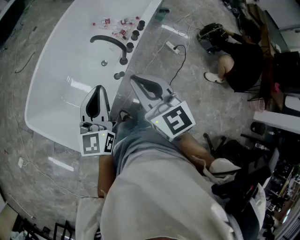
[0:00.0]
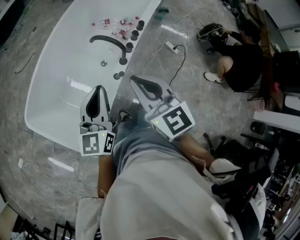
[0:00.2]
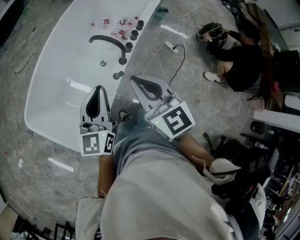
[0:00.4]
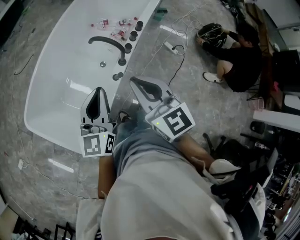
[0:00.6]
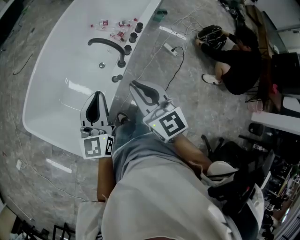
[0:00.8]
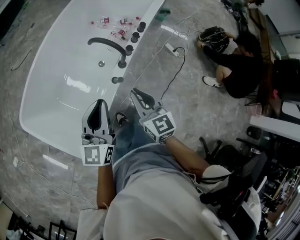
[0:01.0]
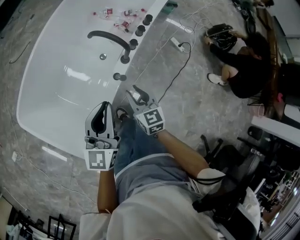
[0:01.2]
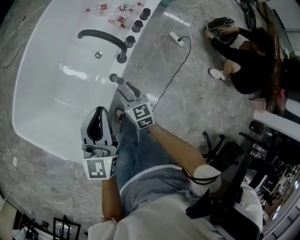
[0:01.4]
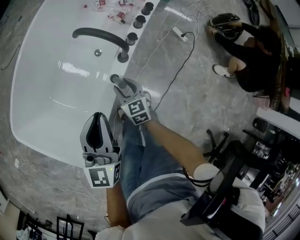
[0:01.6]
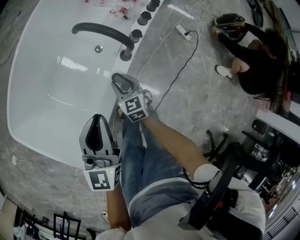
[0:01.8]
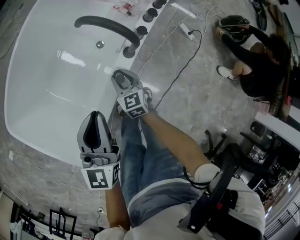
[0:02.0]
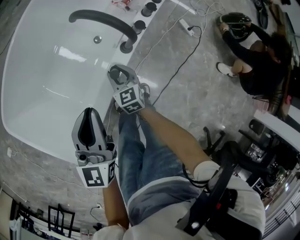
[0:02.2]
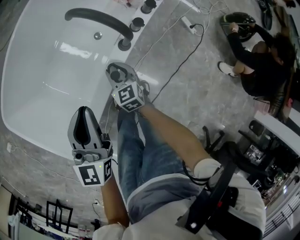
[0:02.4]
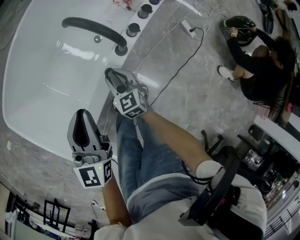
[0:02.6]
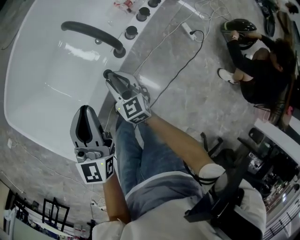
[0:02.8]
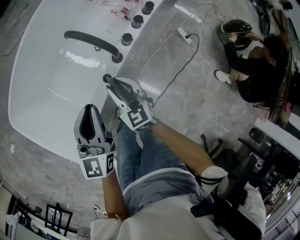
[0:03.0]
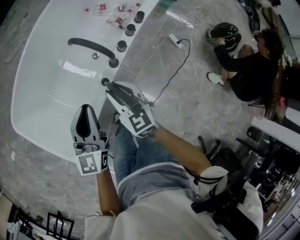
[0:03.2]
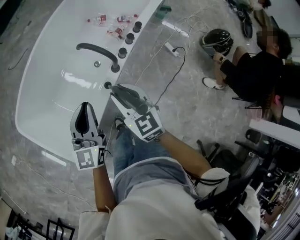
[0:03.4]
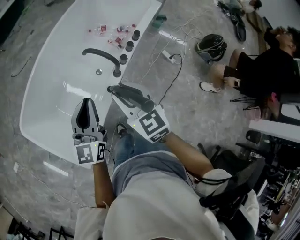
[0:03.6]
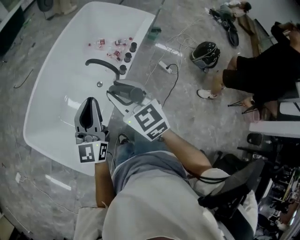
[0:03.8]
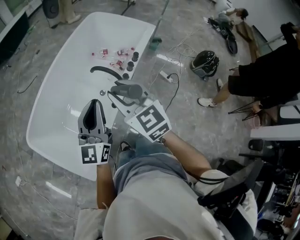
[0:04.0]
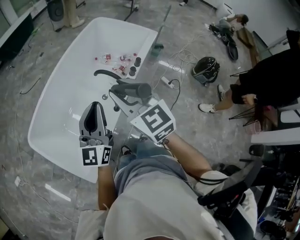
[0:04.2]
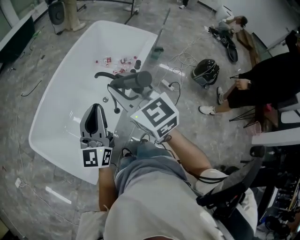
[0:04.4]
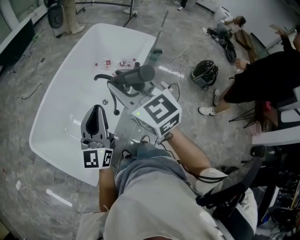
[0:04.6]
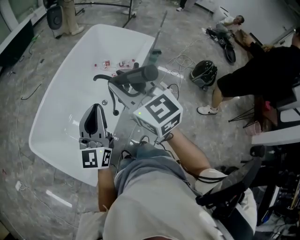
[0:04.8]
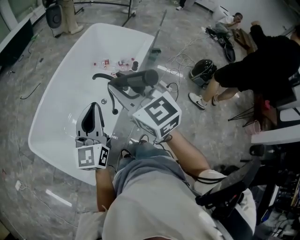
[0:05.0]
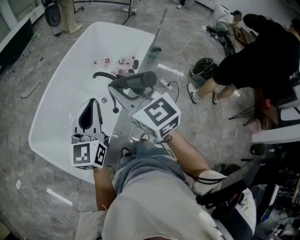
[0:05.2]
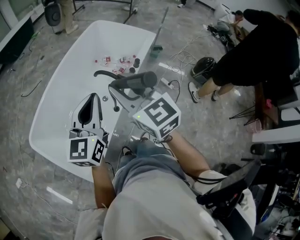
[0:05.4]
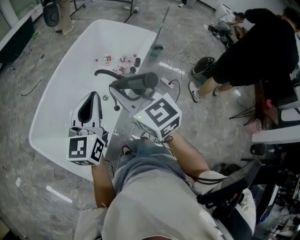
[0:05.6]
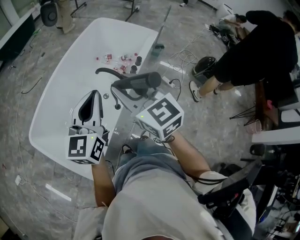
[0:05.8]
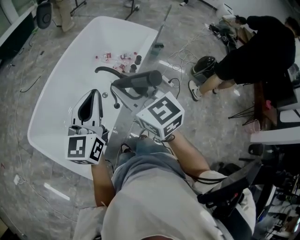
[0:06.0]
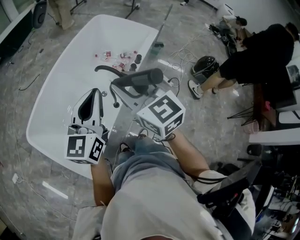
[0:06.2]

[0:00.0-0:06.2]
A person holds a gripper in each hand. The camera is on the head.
0:00.0 to 0:01.6: The right gripper is displaced downward by roughly 60 cm, rotates some 20 degrees, and opens its fingers. The left gripper shifts approximately 40 cm downward and forward.
0:01.6 to 0:03.2: The right gripper travels upward by about 25 cm, and rotates some 20 degrees. Meanwhile the left gripper heads upward and to the right, covering roughly 10 cm.
0:03.2 to 0:04.6: The right gripper shifts some 60 cm upward. The left gripper goes about 50 cm upward and backward, and turns by roughly 20 degrees.
0:04.6 to 0:06.2: The right gripper travels downward by roughly 5 cm.

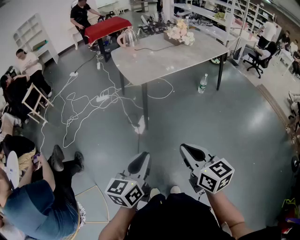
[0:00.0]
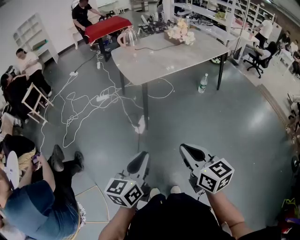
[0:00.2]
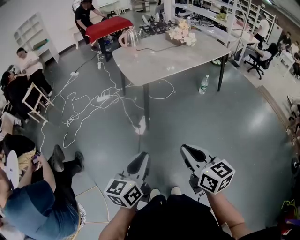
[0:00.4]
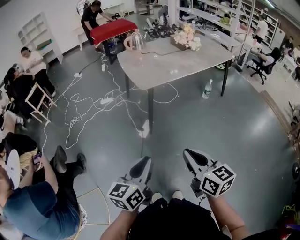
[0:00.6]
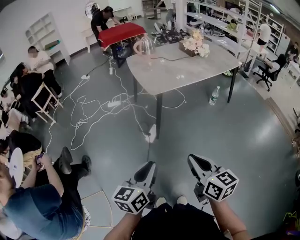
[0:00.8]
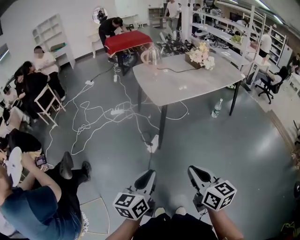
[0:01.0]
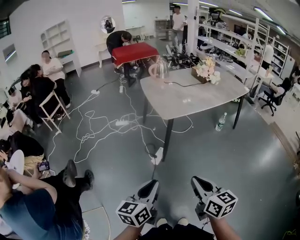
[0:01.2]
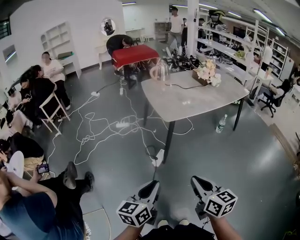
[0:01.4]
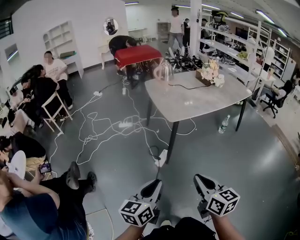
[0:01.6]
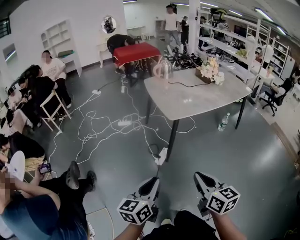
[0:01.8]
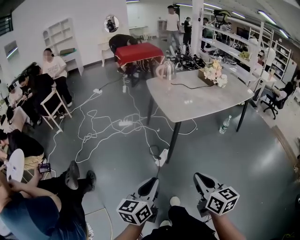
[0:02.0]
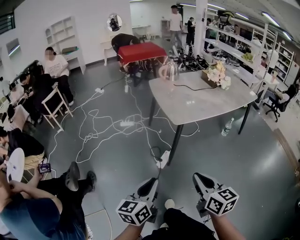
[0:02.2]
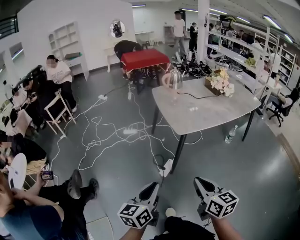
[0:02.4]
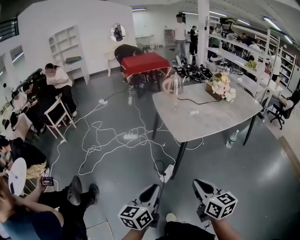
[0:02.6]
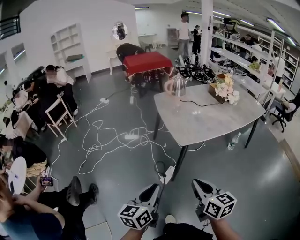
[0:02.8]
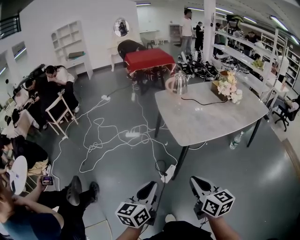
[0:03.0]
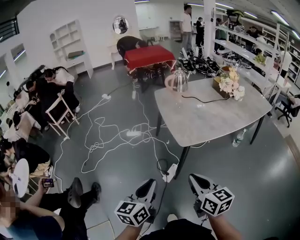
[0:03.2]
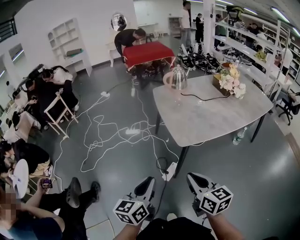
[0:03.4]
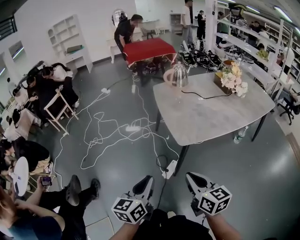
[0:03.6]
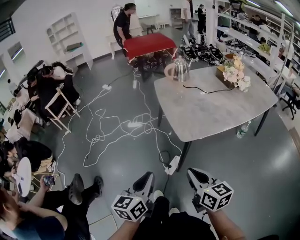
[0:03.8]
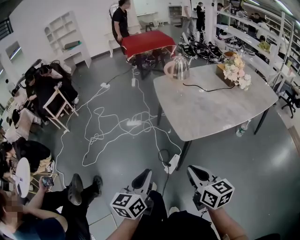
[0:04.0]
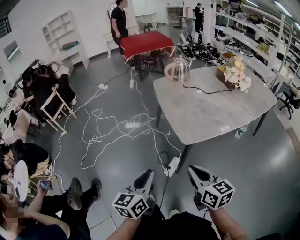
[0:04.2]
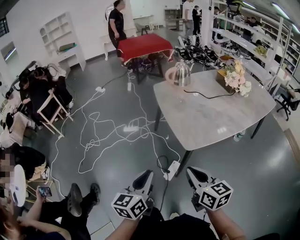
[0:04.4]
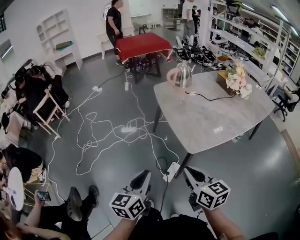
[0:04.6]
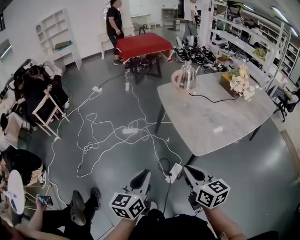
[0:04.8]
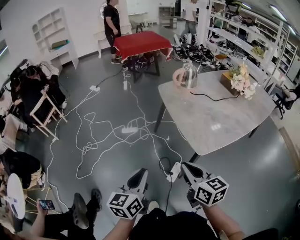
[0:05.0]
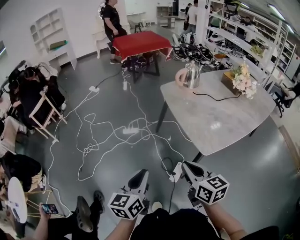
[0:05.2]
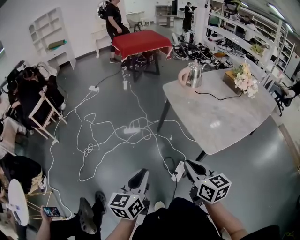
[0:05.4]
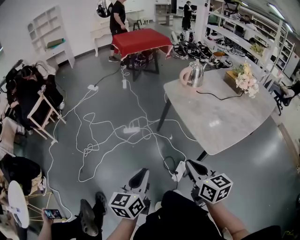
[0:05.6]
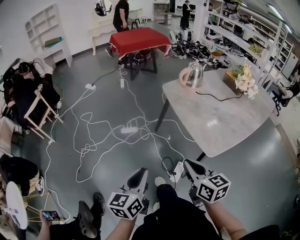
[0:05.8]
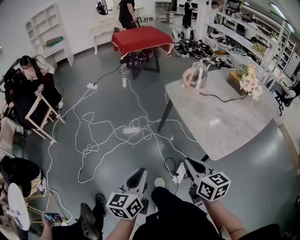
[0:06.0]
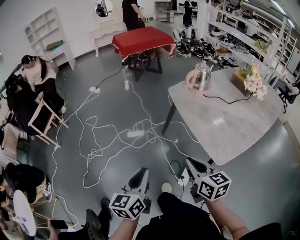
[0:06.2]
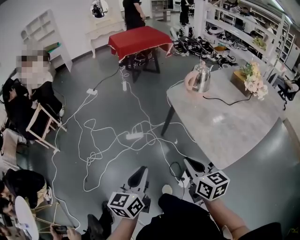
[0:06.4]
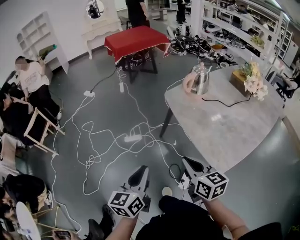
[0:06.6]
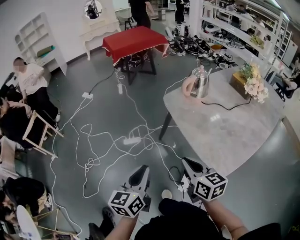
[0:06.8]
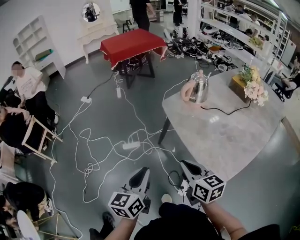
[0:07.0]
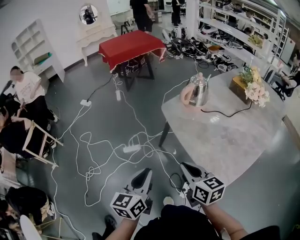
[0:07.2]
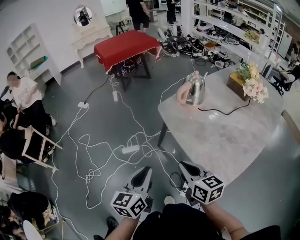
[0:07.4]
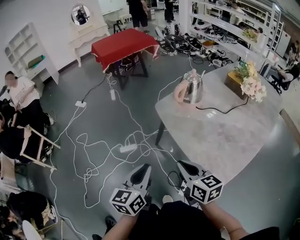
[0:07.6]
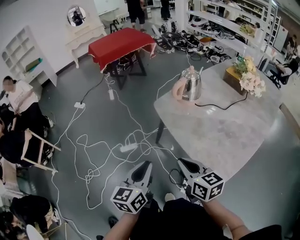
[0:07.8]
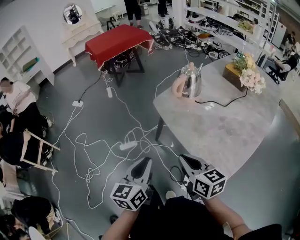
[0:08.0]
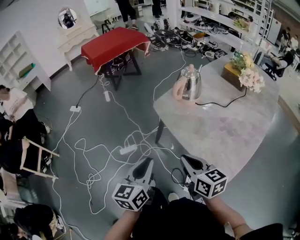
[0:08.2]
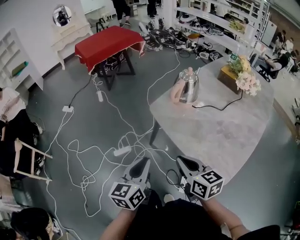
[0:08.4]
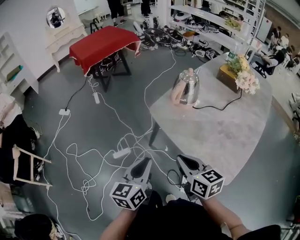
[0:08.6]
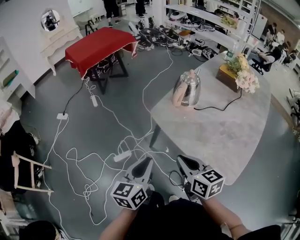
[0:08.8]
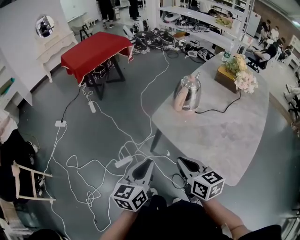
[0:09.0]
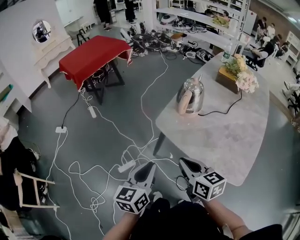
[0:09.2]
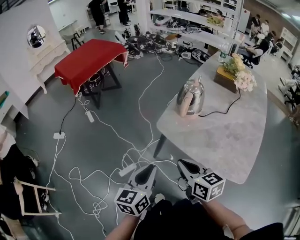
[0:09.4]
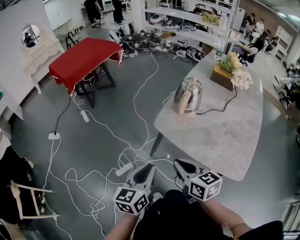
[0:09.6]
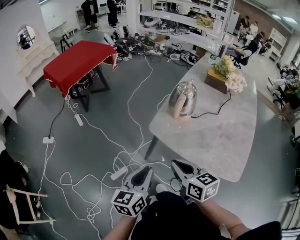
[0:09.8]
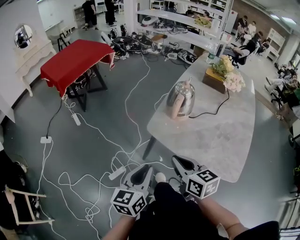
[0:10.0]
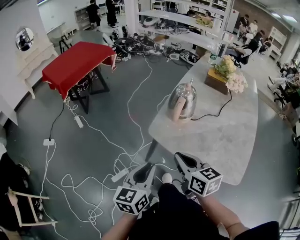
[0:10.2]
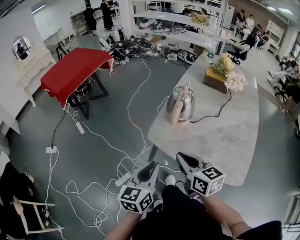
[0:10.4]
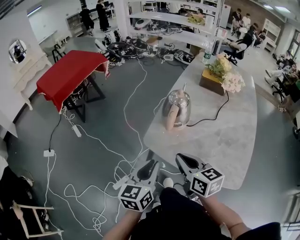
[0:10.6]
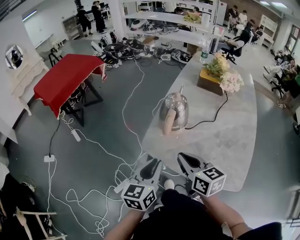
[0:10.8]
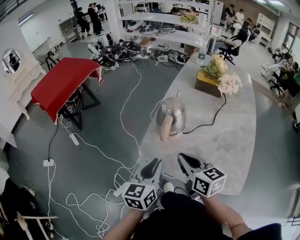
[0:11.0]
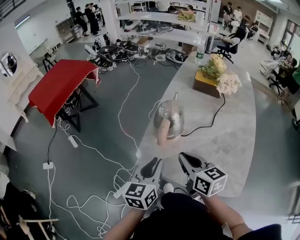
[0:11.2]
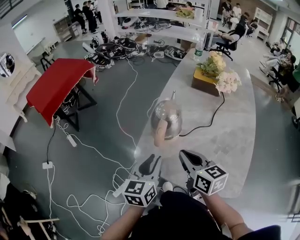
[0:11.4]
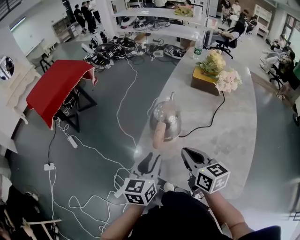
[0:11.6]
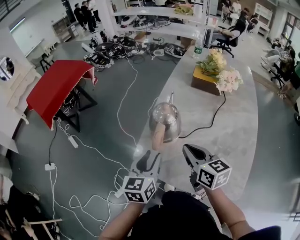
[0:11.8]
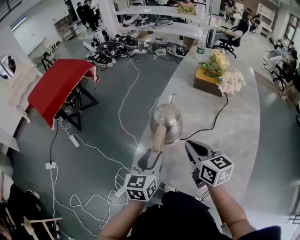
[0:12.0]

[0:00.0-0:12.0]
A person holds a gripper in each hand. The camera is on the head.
0:00.0 to 0:01.6: The left gripper goes about 15 cm to the left, while the right gripper moves to the left and forward, some 10 cm.
0:01.6 to 0:03.0: The grippers both shift forward by roughly 20 cm.
0:03.0 to 0:04.4: The grippers both shift forward by approximately 15 cm.
0:04.4 to 0:06.0: Both grippers move to the left and forward, approximately 25 cm.
0:06.0 to 0:07.6: Both grippers move forward, some 20 cm.
0:07.6 to 0:09.0: The left gripper moves forward, about 15 cm. The right gripper goes roughly 15 cm forward and to the left.
0:09.0 to 0:10.4: The two grippers go some 10 cm forward.
0:10.4 to 0:12.0: Both grippers move forward and to the right, approximately 20 cm. The left gripper opens its fingers.

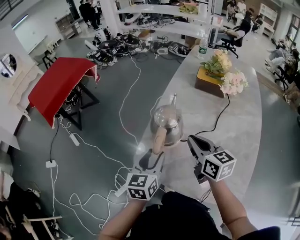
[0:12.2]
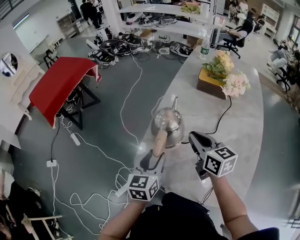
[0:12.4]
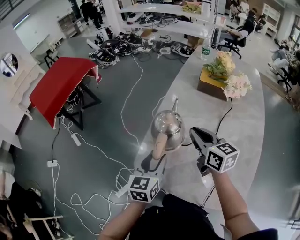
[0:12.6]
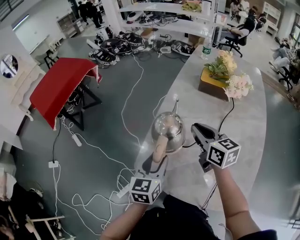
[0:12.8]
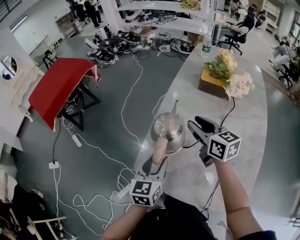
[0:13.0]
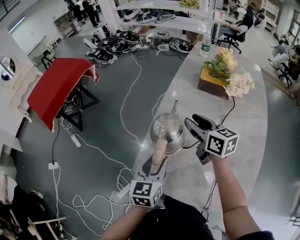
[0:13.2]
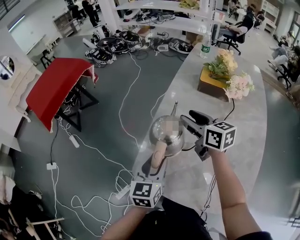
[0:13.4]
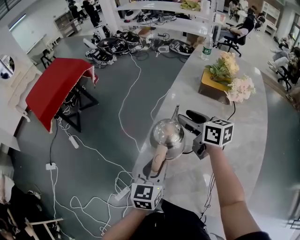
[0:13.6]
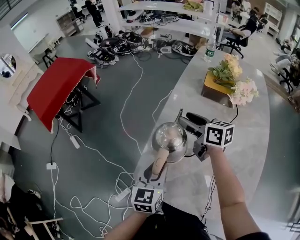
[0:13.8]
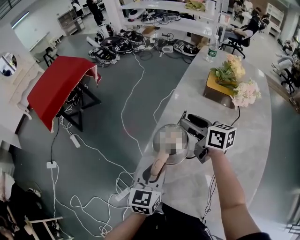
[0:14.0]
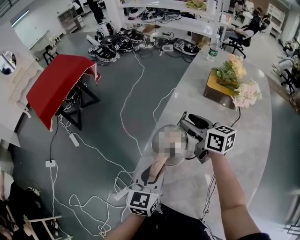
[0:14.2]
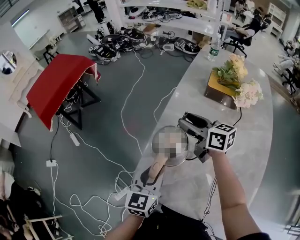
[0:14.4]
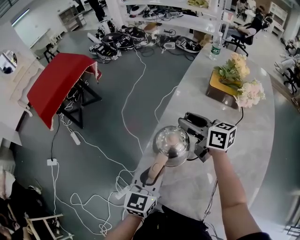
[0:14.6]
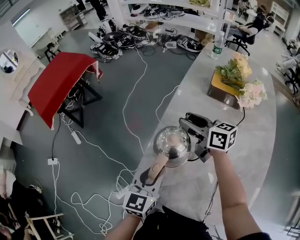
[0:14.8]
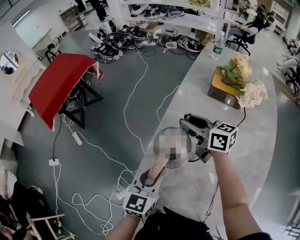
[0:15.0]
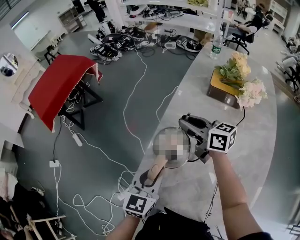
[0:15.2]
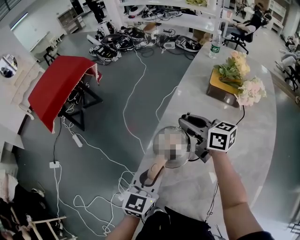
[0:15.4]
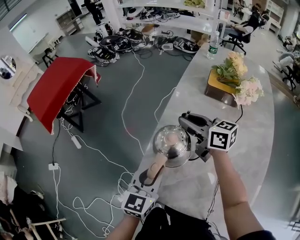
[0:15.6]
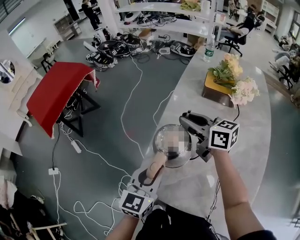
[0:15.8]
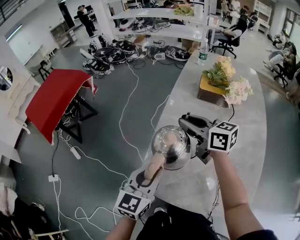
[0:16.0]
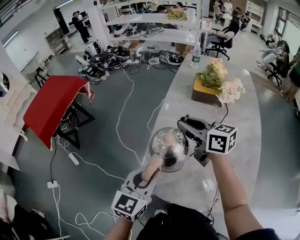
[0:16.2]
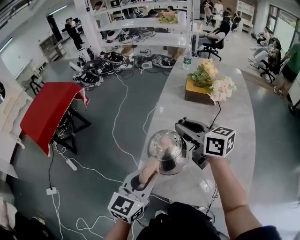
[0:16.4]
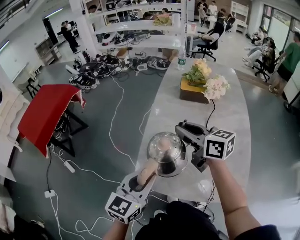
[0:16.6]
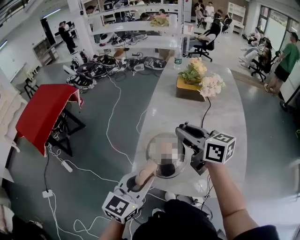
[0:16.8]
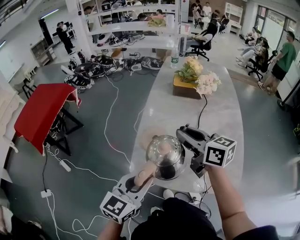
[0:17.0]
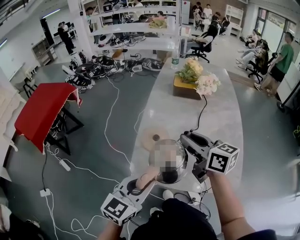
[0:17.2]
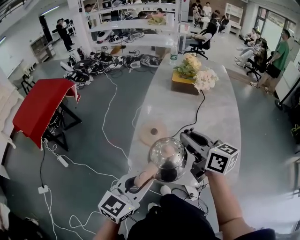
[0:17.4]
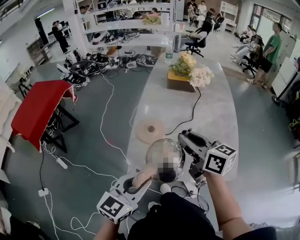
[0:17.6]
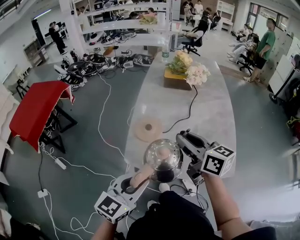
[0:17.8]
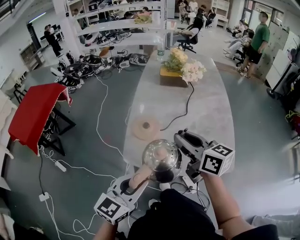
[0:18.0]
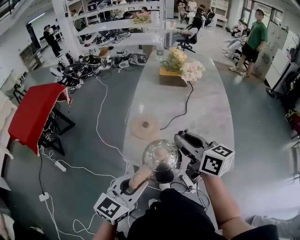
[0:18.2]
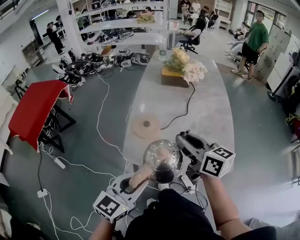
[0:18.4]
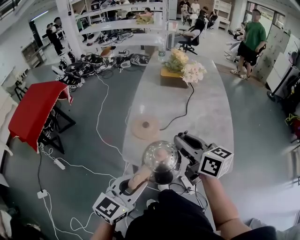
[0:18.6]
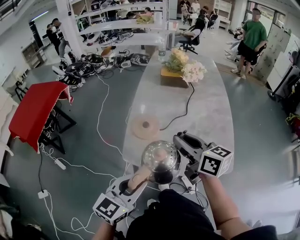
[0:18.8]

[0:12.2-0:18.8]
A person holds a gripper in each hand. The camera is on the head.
0:12.2 to 0:13.8: The left gripper moves approximately 5 cm, while the right gripper goes approximately 20 cm forward, and opens its fingers.
0:13.8 to 0:15.4: The right gripper closes up.
0:15.4 to 0:17.2: The left gripper ends up some 20 cm from where it was, and swivels approximately 30 degrees. The right gripper moves approximately 25 cm, and swivels some 20 degrees.
0:17.2 to 0:18.8: Both grippers travel together backward, about 5 cm.
